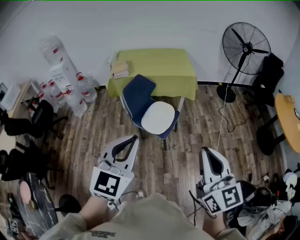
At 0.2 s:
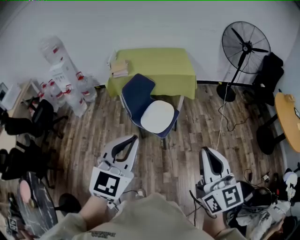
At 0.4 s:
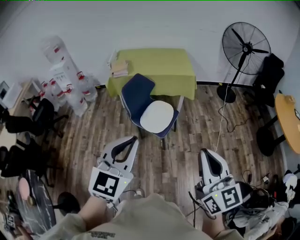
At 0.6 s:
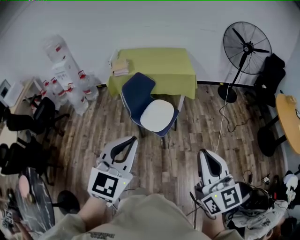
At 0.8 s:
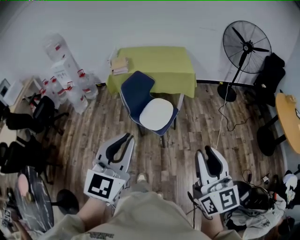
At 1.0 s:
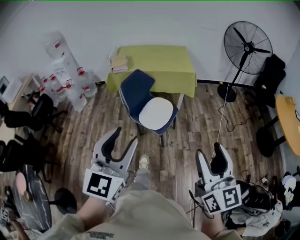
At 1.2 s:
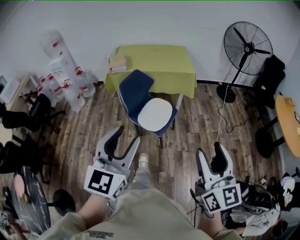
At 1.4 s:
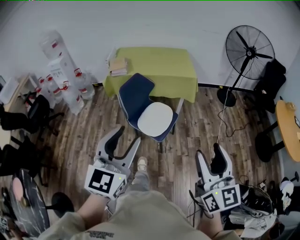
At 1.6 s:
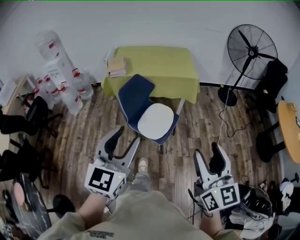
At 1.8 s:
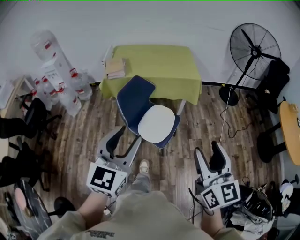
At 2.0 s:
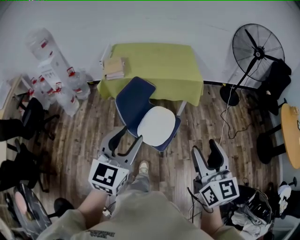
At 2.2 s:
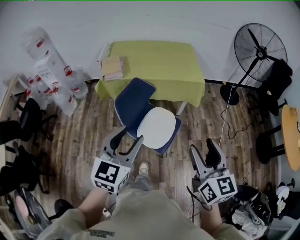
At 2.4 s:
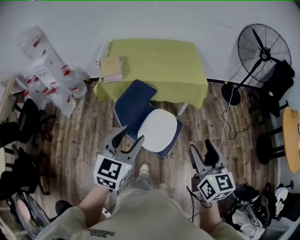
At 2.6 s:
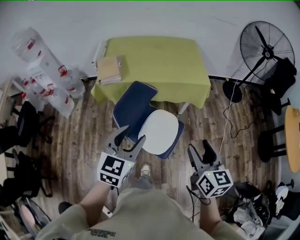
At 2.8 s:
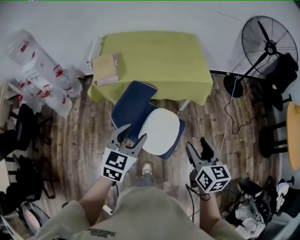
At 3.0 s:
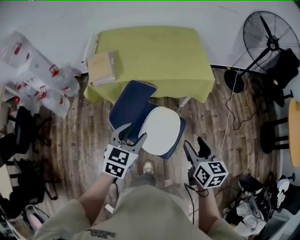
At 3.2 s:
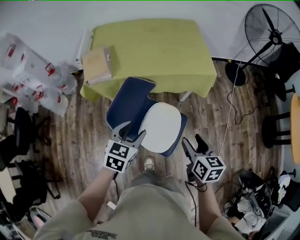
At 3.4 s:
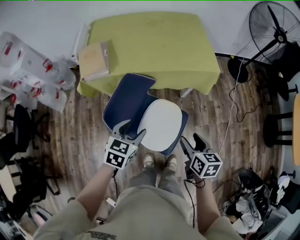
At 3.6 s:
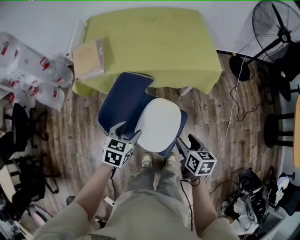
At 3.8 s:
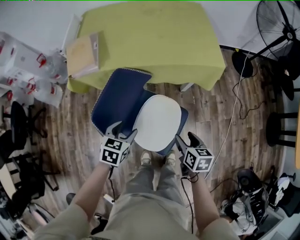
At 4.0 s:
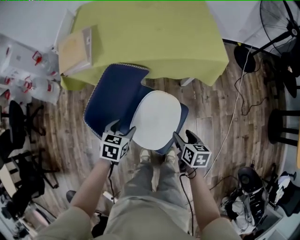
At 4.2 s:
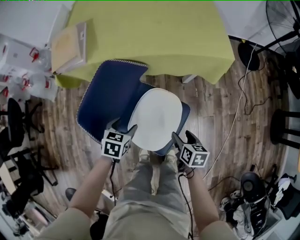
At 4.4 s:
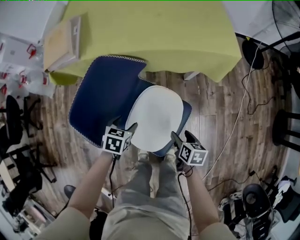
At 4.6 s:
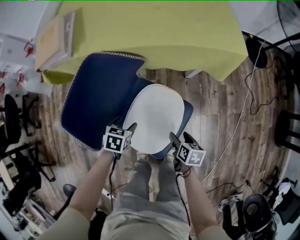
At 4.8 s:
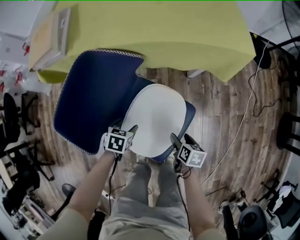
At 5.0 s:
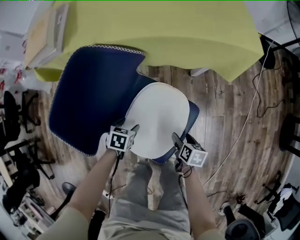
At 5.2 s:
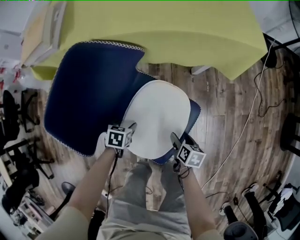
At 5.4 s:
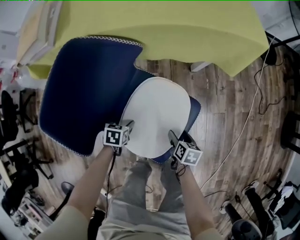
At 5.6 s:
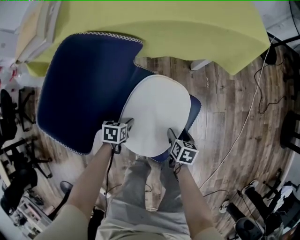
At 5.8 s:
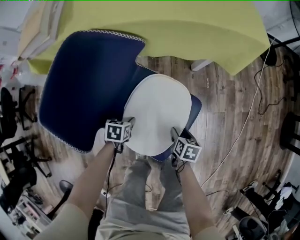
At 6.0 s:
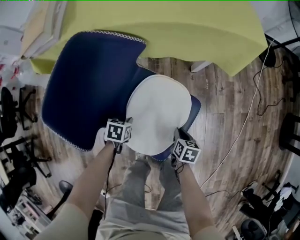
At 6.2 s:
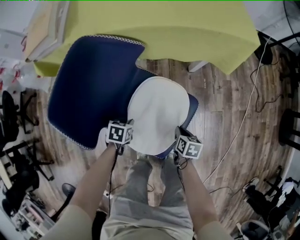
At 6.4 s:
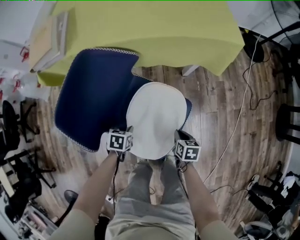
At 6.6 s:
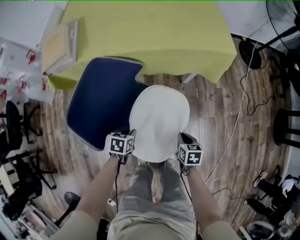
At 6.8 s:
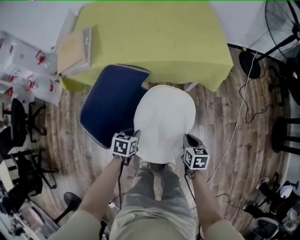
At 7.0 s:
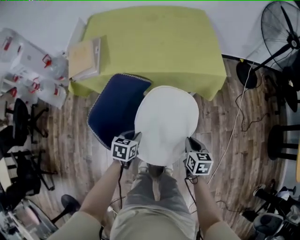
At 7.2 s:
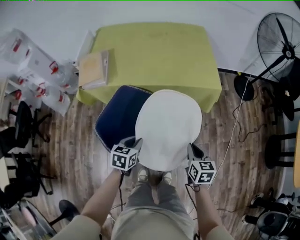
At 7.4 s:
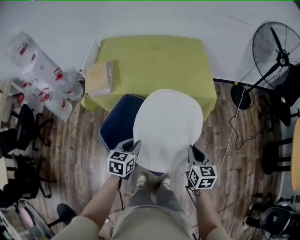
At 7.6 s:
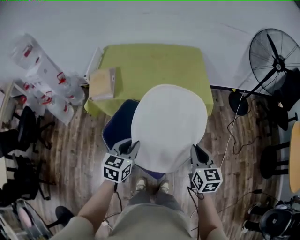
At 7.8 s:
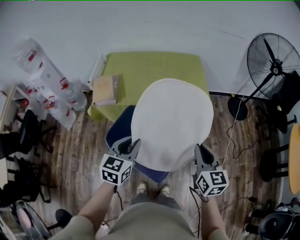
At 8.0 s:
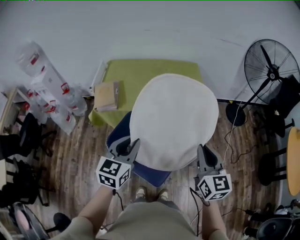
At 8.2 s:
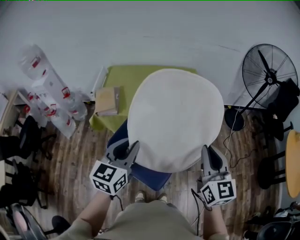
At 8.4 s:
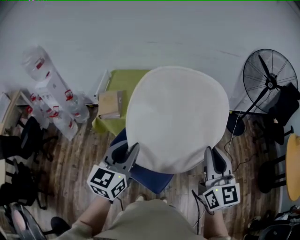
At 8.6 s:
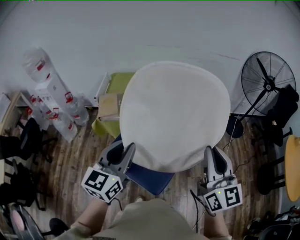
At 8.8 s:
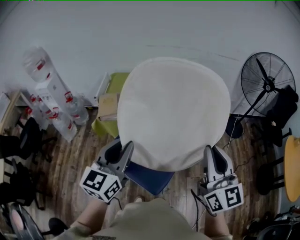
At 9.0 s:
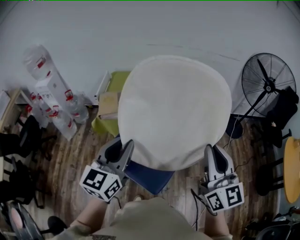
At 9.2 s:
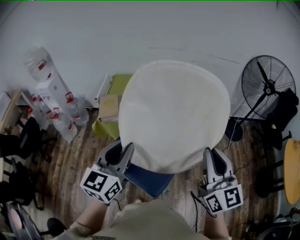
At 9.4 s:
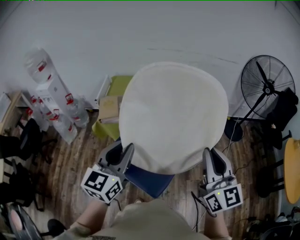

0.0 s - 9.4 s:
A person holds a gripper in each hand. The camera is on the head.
0.0 s - 1.6 s: Both grippers travel together forward, about 10 cm. The left gripper opens up, while the right gripper opens its fingers.
1.6 s - 3.2 s: The pair of grippers is taken forward, about 40 cm. Both grippers travel together downward, roughly 25 cm. The right gripper points its fingers some 30 degrees further downward. Meanwhile the left gripper angles its fingers downward, by some 30 degrees.
3.2 s - 4.8 s: The two grippers go some 40 cm downward. The right gripper changes its angle by roughly 30 degrees. The left gripper points its fingers approximately 30 degrees further downward.
4.8 s - 6.2 s: The two grippers go roughly 5 cm downward. The right gripper closes. The left gripper closes its fingers.
6.2 s - 7.8 s: Both grippers move upward, roughly 60 cm. The right gripper points its fingers about 40 degrees further upward; the left gripper tilts its fingers some 50 degrees upward.
7.8 s - 9.4 s: The two grippers go some 20 cm upward. The right gripper changes its angle by approximately 20 degrees. The left gripper swivels roughly 20 degrees.

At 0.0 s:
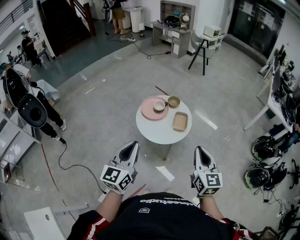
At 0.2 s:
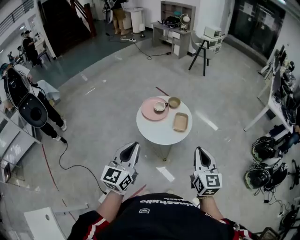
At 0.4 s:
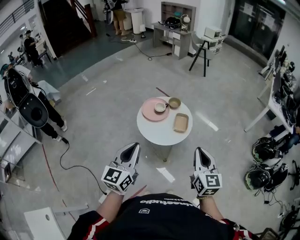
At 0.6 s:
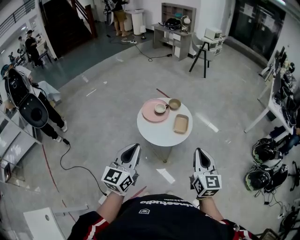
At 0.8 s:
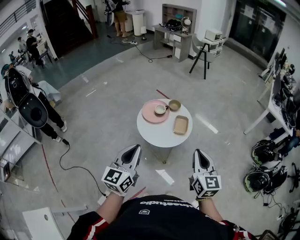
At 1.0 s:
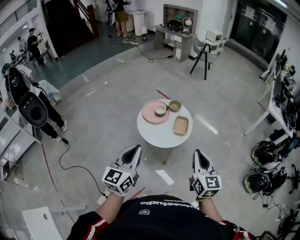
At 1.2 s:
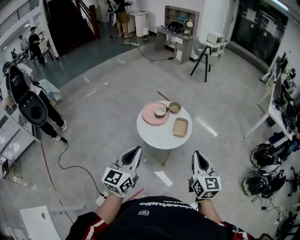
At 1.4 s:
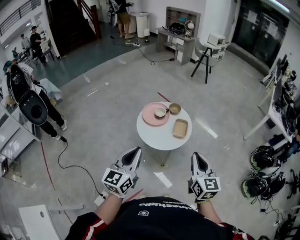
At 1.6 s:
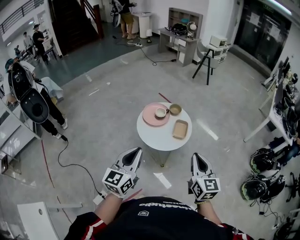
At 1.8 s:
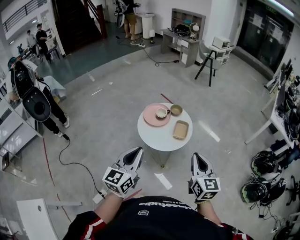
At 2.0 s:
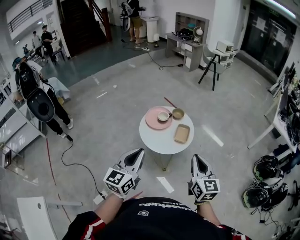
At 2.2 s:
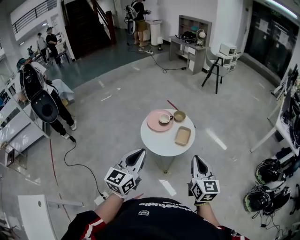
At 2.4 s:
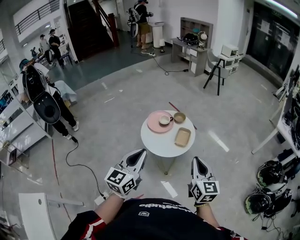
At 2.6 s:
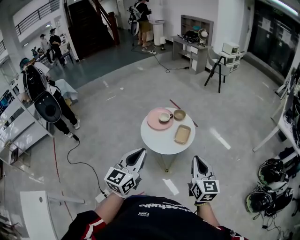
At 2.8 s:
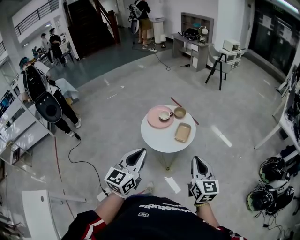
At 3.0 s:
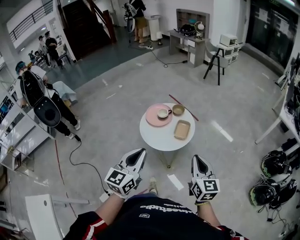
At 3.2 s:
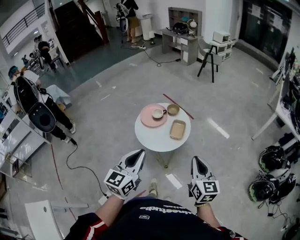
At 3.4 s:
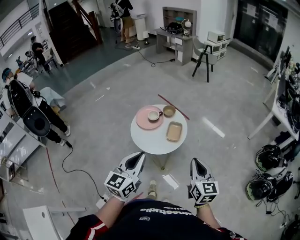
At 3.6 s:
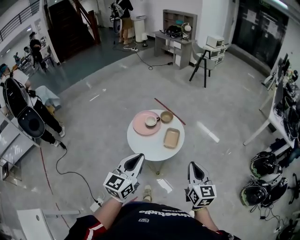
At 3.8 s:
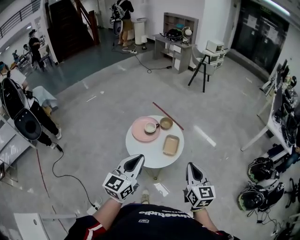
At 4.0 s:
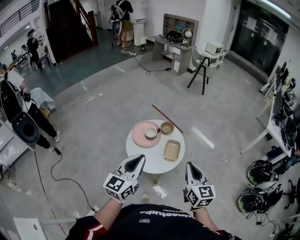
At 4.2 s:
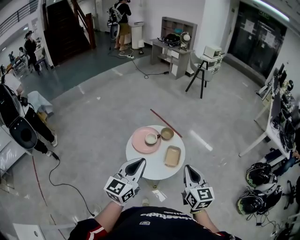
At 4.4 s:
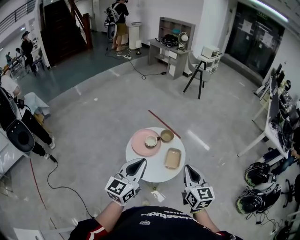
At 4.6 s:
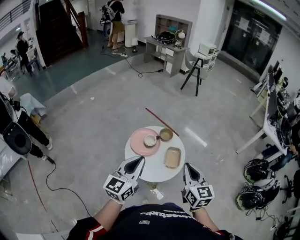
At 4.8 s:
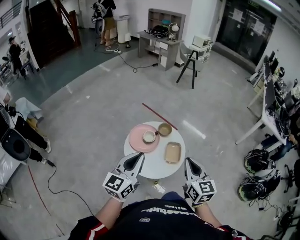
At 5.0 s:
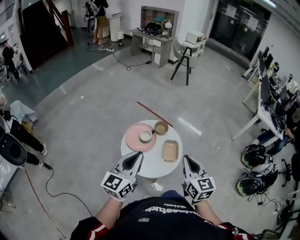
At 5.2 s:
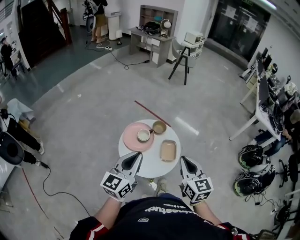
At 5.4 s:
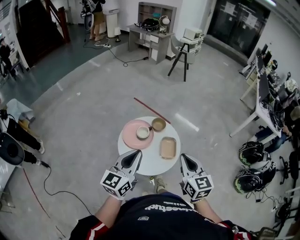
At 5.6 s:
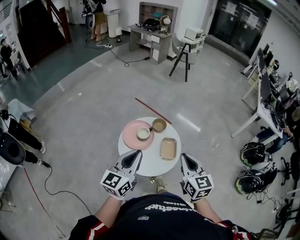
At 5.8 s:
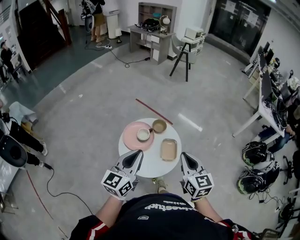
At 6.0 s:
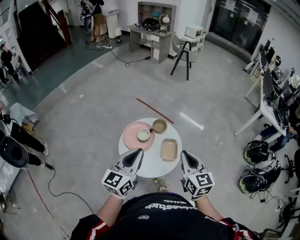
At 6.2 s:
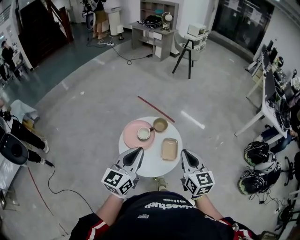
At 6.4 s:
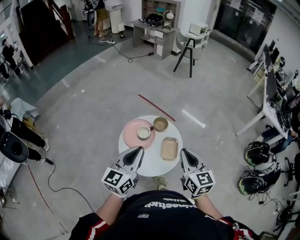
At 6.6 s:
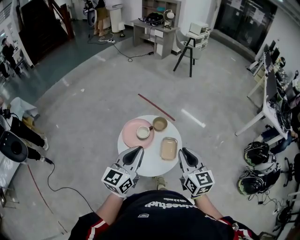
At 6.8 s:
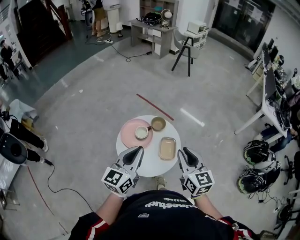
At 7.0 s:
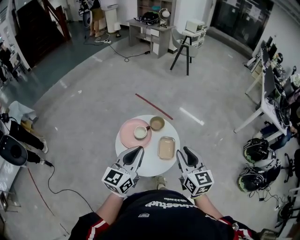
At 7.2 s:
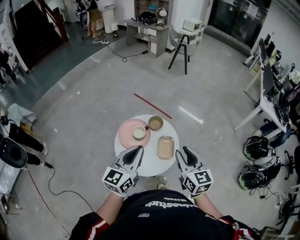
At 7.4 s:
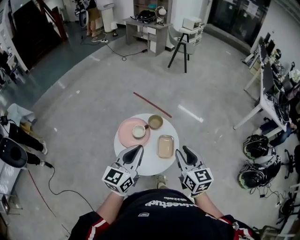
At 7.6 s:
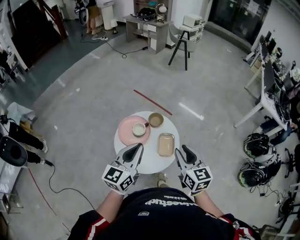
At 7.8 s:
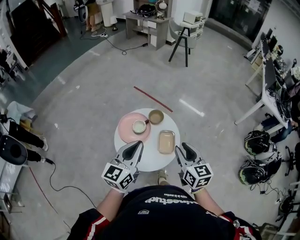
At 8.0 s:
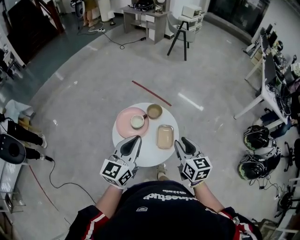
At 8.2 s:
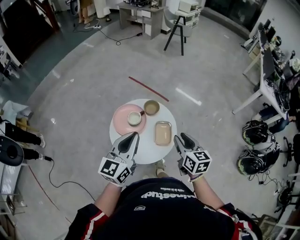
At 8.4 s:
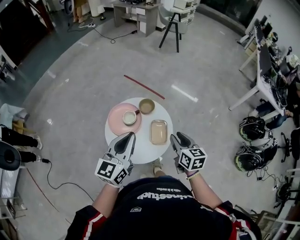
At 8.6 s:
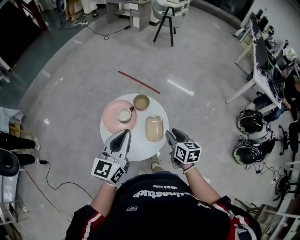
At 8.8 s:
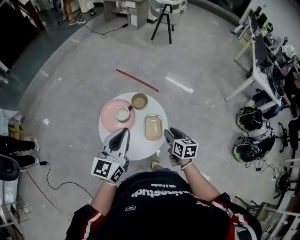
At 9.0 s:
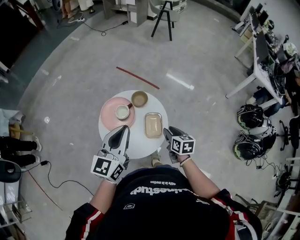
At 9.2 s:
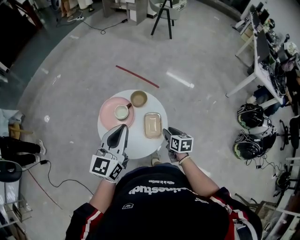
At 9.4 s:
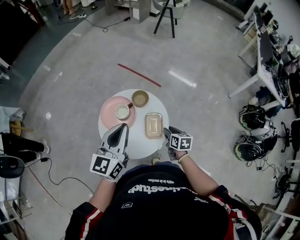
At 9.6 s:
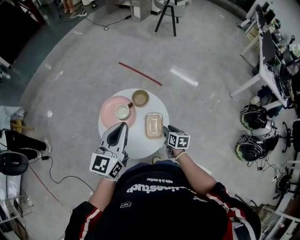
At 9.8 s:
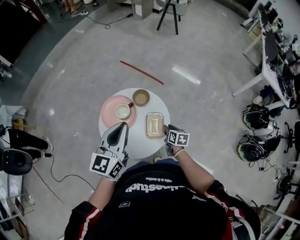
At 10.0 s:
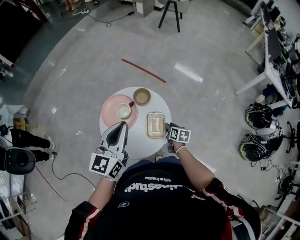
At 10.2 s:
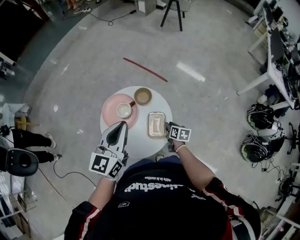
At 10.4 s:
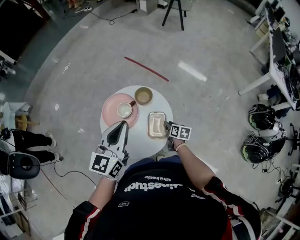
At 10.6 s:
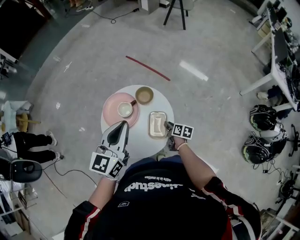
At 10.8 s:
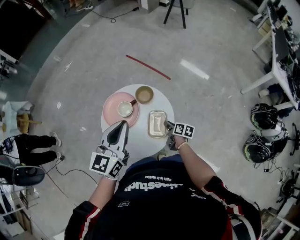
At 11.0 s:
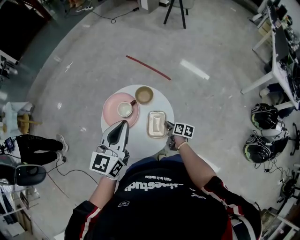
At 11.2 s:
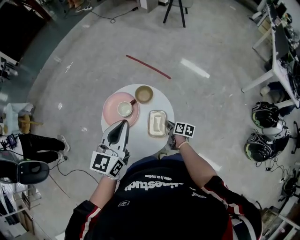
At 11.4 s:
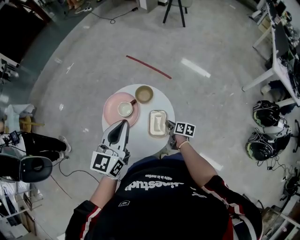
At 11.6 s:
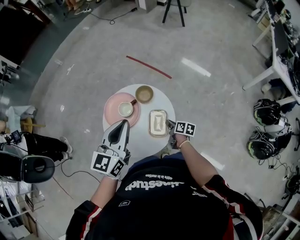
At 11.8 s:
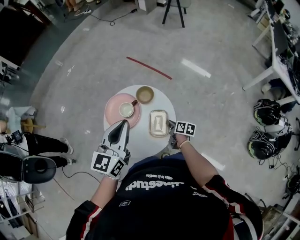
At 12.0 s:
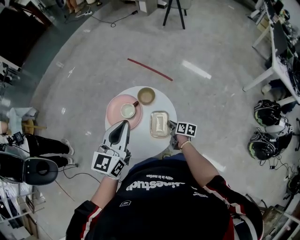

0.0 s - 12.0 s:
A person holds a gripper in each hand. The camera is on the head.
0.0 s - 1.6 s: There are only small adjustments of the grippers.
1.6 s - 3.0 s: Both grippers travel together to the right, some 10 cm.
3.0 s - 4.4 s: Both grippers move forward and to the left, some 25 cm.
4.4 s - 6.0 s: Both grippers travel together forward, about 10 cm.
6.0 s - 7.6 s: The right gripper changes place by about 5 cm, and opens up; the left gripper moves approximately 5 cm.
7.6 s - 9.0 s: The left gripper goes approximately 5 cm forward; the right gripper moves downward, some 20 cm, and swivels about 30 degrees.
9.0 s - 10.4 s: The left gripper is displaced forward by some 5 cm; the right gripper moves downward and forward, roughly 20 cm.
10.4 s - 12.0 s: There are only small adjustments of the grippers.

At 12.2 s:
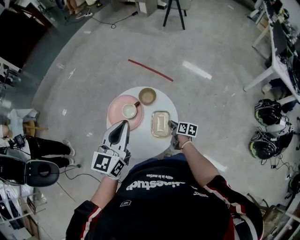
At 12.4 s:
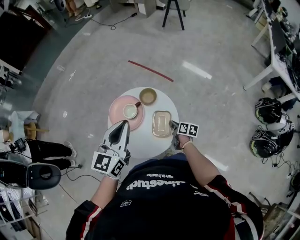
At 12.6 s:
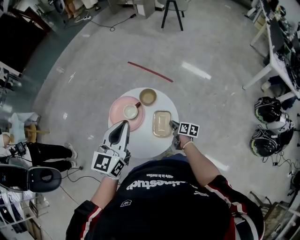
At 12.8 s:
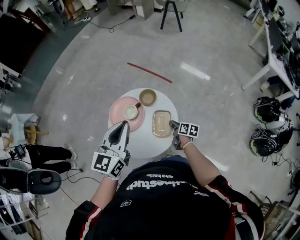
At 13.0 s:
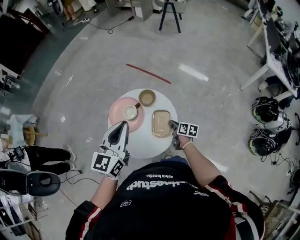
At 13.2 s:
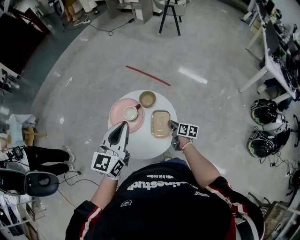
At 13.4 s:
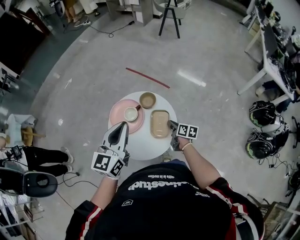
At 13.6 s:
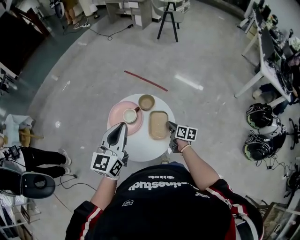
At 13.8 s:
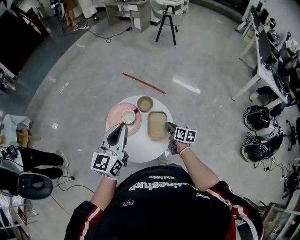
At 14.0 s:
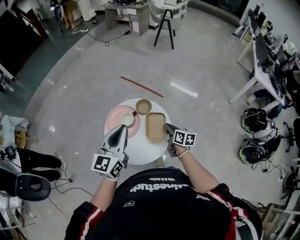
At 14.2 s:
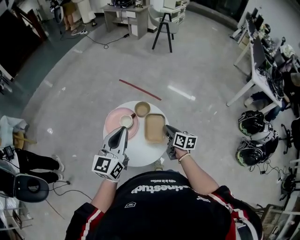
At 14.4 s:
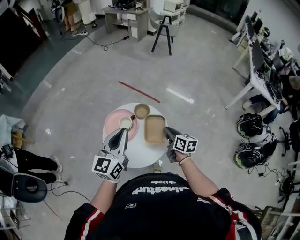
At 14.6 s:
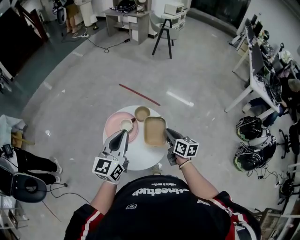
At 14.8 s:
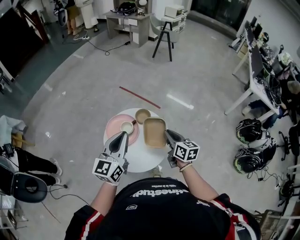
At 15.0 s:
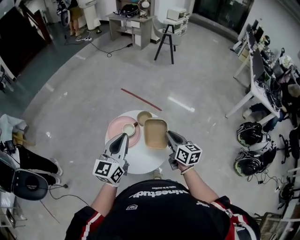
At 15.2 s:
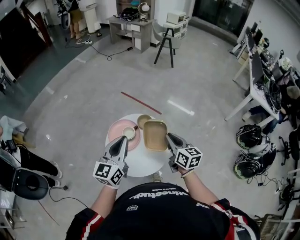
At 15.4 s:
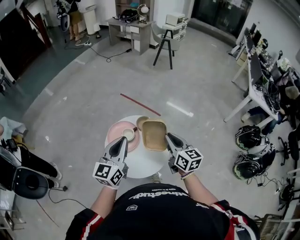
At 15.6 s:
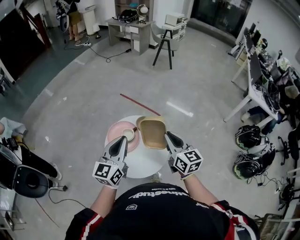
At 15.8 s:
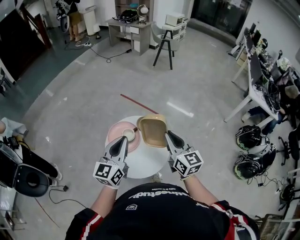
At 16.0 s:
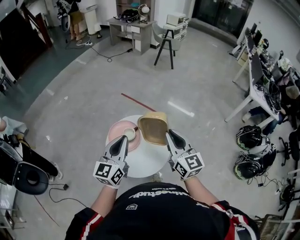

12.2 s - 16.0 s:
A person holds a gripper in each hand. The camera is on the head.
12.2 s - 13.4 s: The left gripper shifts by some 5 cm; the right gripper shifts about 5 cm upward.
13.4 s - 14.8 s: The right gripper goes some 20 cm upward, and turns by some 30 degrees.
14.8 s - 16.0 s: The right gripper shifts approximately 15 cm upward, and rotates approximately 30 degrees.
